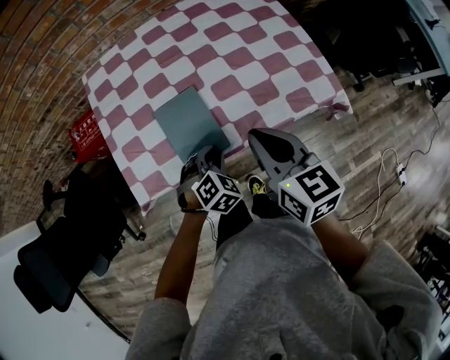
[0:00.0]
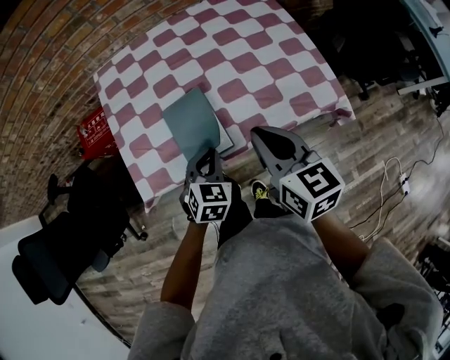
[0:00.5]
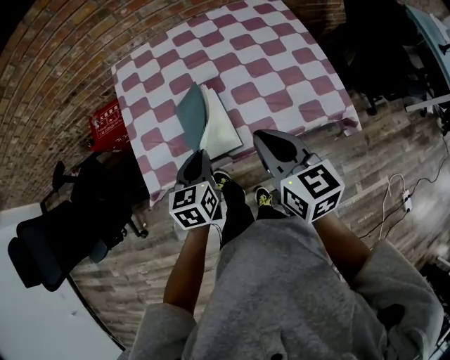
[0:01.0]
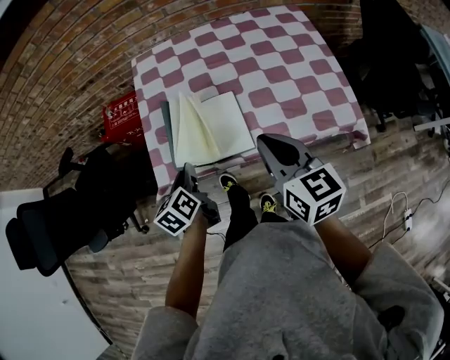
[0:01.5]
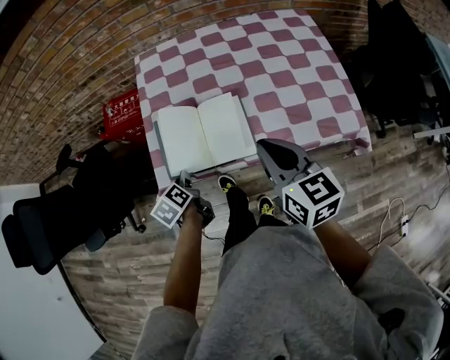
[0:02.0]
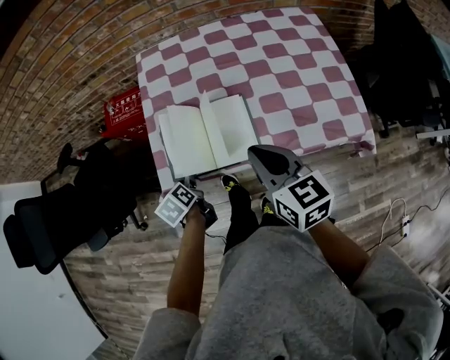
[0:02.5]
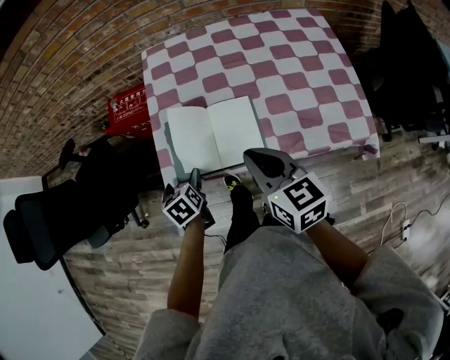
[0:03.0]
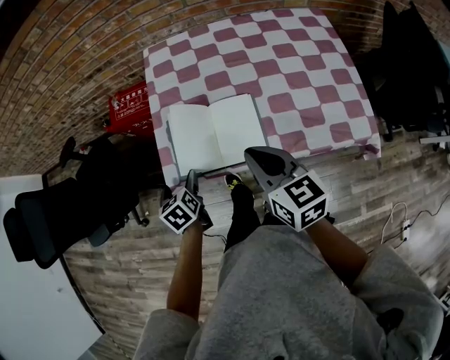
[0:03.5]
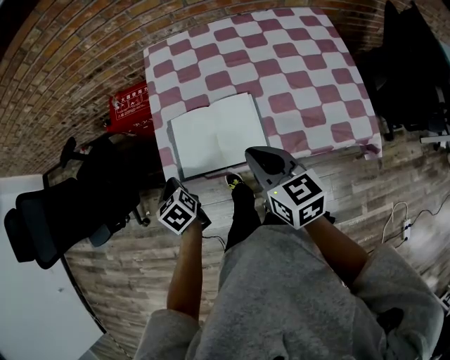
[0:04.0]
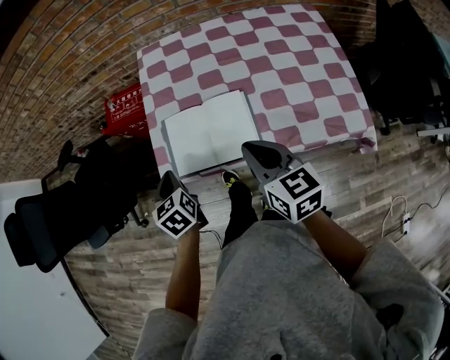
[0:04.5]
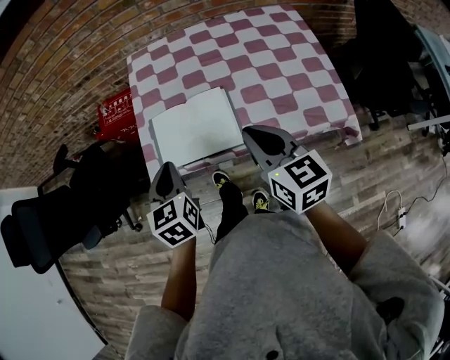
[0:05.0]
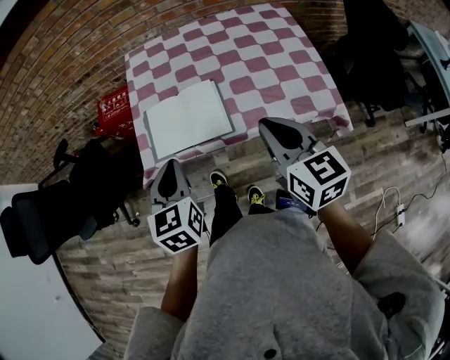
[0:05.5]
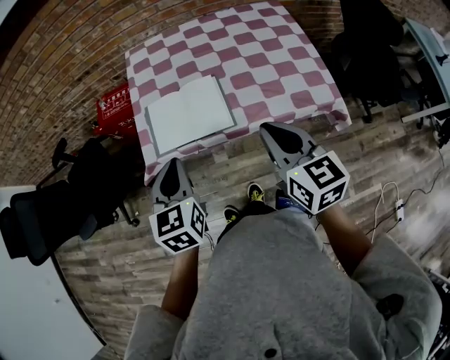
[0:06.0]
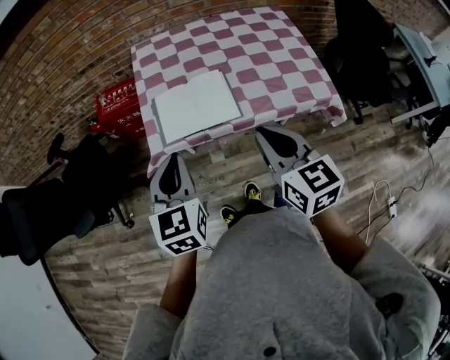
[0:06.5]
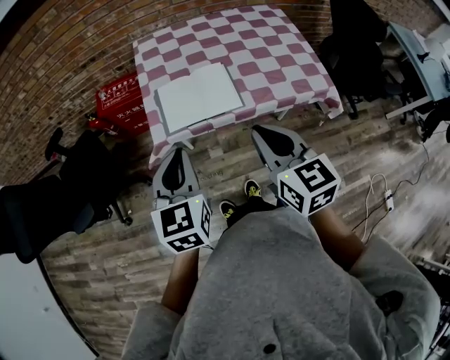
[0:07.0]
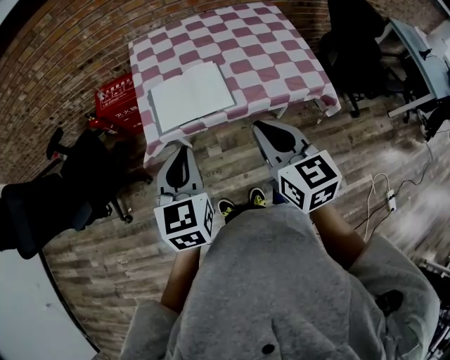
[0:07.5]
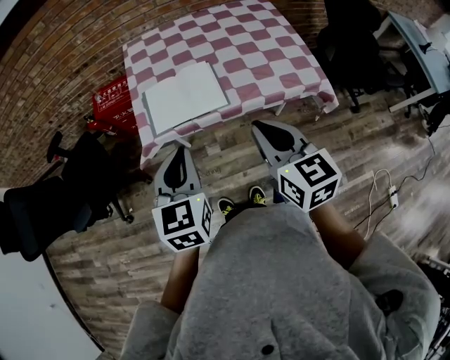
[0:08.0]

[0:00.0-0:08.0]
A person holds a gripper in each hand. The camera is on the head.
0:00.0 to 0:02.0: The left gripper is displaced to the left by some 25 cm, and twists some 100 degrees counterclockwise, seen from behind. Meanwhile the right gripper goes about 5 cm to the left.
0:02.0 to 0:04.0: Both grippers travel together to the left, some 5 cm. The left gripper changes its angle by some 20 degrees, and opens, then closes once more.
0:04.0 to 0:06.0: The left gripper shifts roughly 25 cm upward, to the right and backward, and changes its angle by some 40 degrees; the right gripper goes some 15 cm backward, upward and to the right.
0:06.0 to 0:08.0: The two grippers go some 10 cm backward.

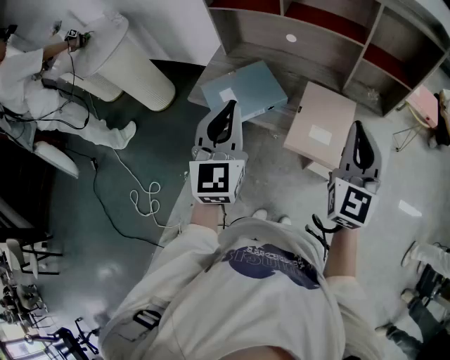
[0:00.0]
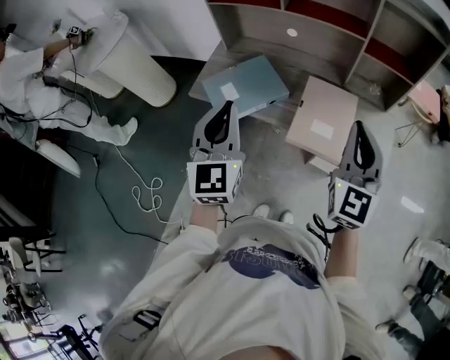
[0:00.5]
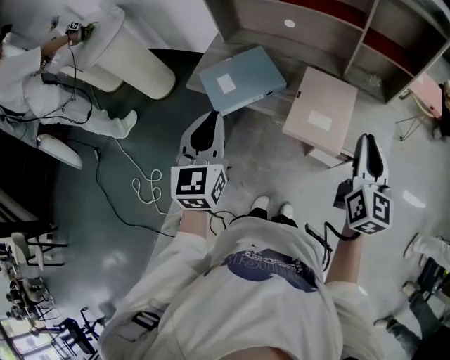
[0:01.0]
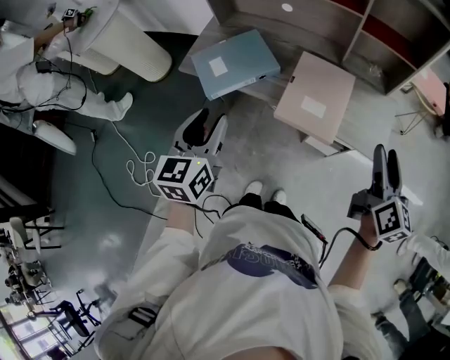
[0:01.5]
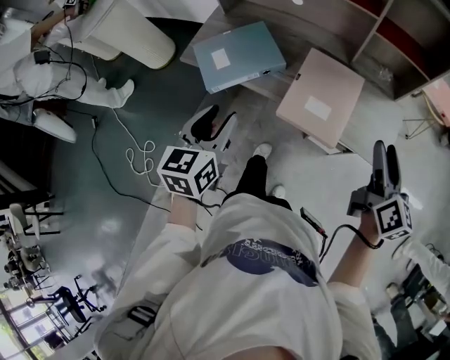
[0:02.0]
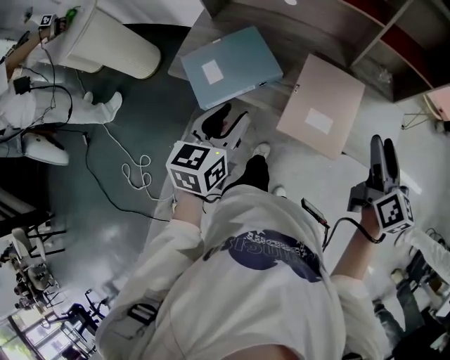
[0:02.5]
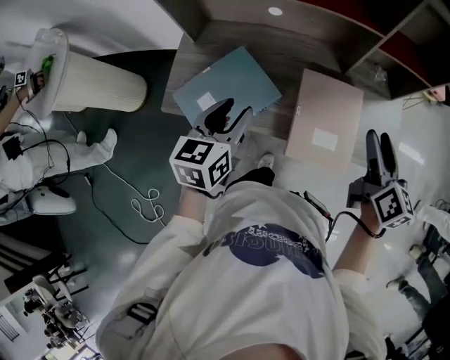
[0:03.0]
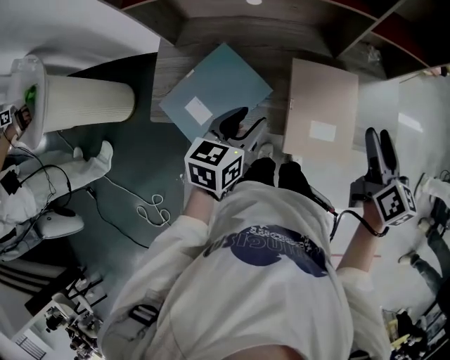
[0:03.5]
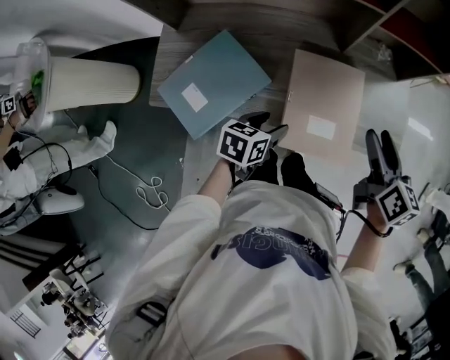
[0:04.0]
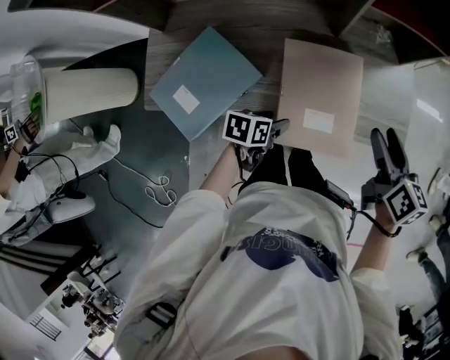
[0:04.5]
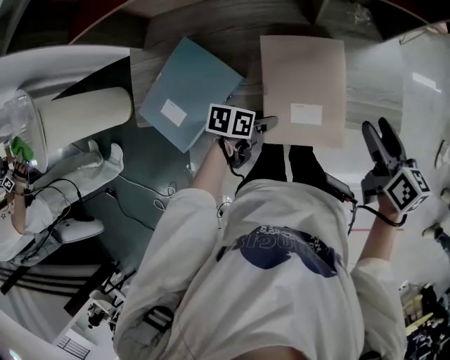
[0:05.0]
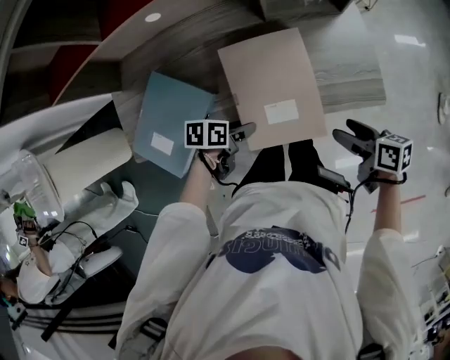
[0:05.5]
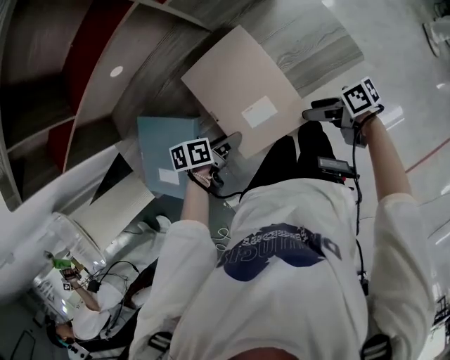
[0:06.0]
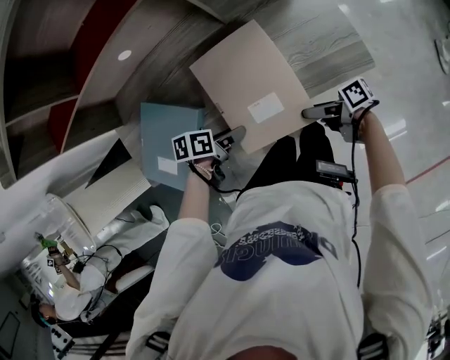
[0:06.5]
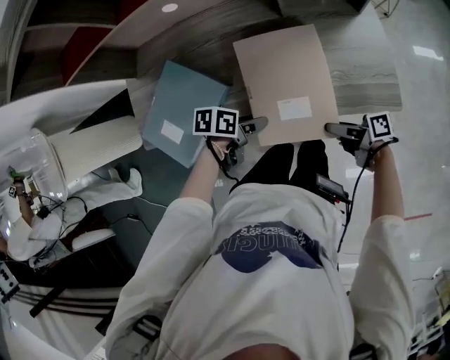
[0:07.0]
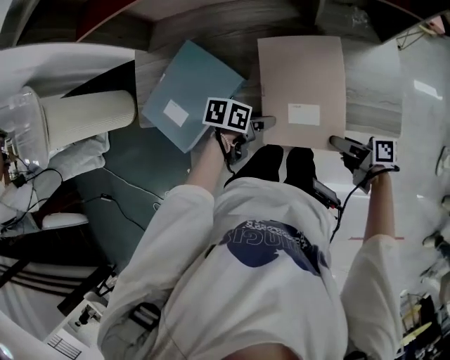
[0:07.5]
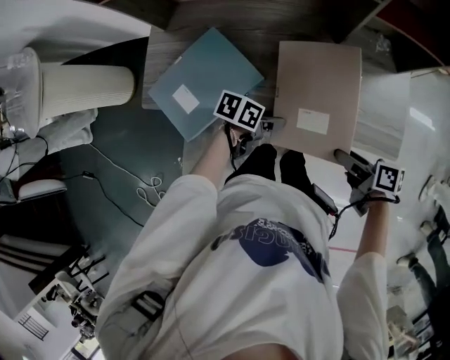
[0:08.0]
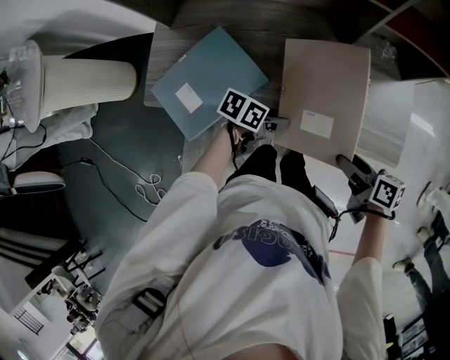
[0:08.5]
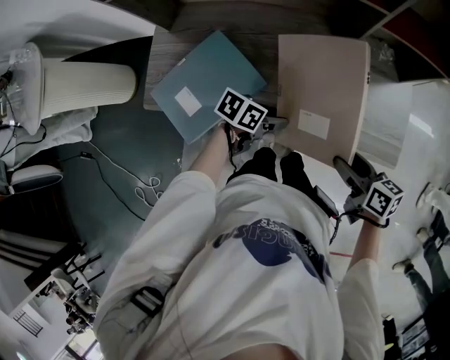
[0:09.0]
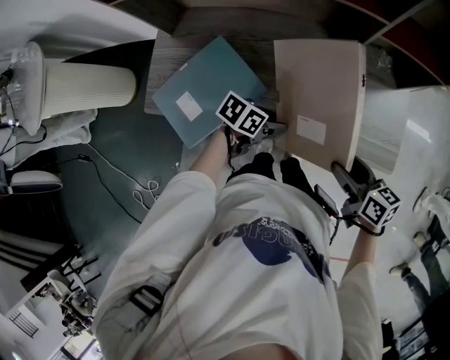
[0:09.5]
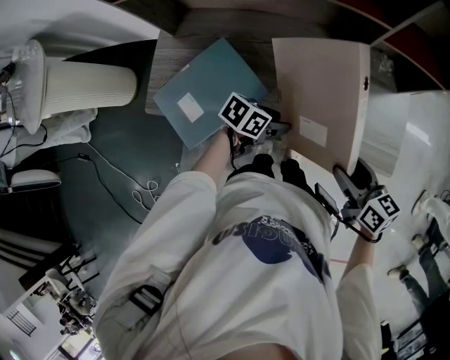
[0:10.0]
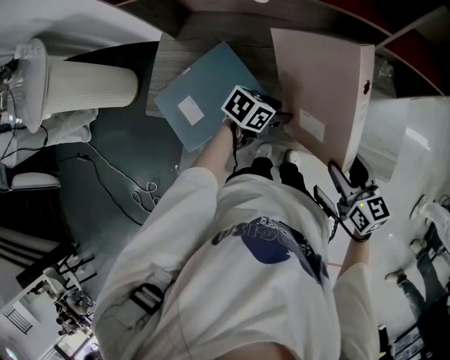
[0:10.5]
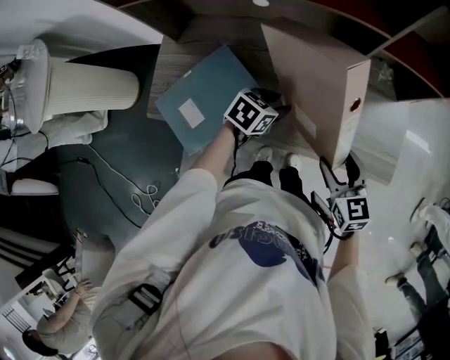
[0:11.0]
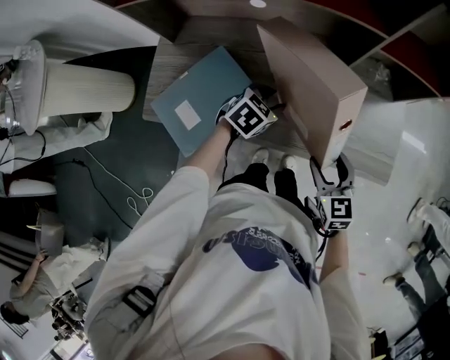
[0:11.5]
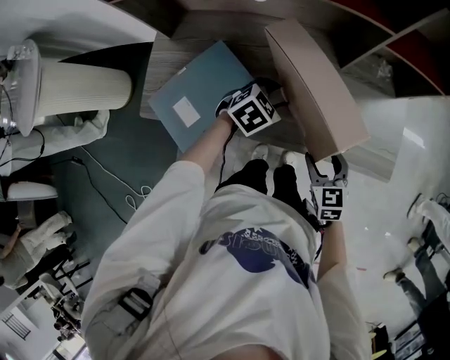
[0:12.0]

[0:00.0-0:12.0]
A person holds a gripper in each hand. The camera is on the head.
0:00.0 to 0:02.0: The right gripper shifts about 20 cm to the right and downward, rotates around the line of its fingers by about 40 degrees, clockwise from behind, and opens its fingers. The left gripper moves downward, roughly 10 cm, rotates some 30 degrees, and opens up.
0:02.0 to 0:04.0: The right gripper ends up approximately 15 cm from where it was. Meanwhile the left gripper is displaced downward by approximately 20 cm, and turns by about 50 degrees.
0:04.0 to 0:06.0: The right gripper shifts about 25 cm downward, and rotates about 50 degrees, while the left gripper shifts approximately 10 cm downward, and turns by roughly 30 degrees.
0:06.0 to 0:08.0: The right gripper heads upward, covering roughly 10 cm.
0:08.0 to 0:10.0: The right gripper goes roughly 5 cm upward, and turns by approximately 40 degrees.
0:10.0 to 0:12.0: The left gripper ends up about 10 cm from where it was, and changes its angle by approximately 40 degrees. Meanwhile the right gripper shifts about 10 cm downward, and turns by some 40 degrees.

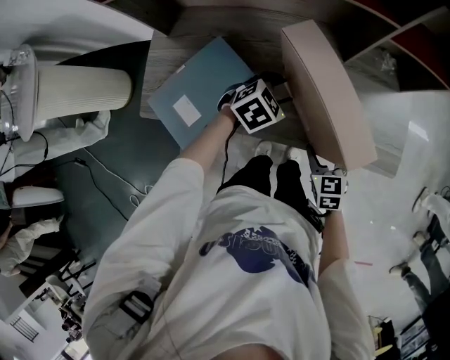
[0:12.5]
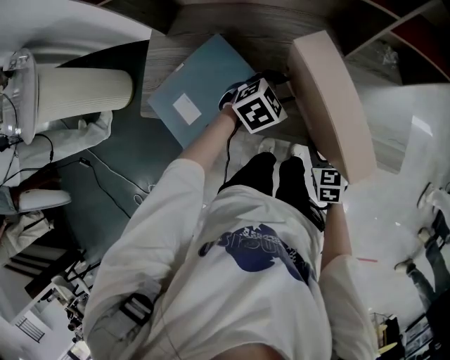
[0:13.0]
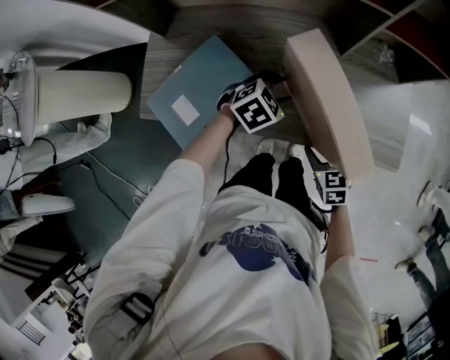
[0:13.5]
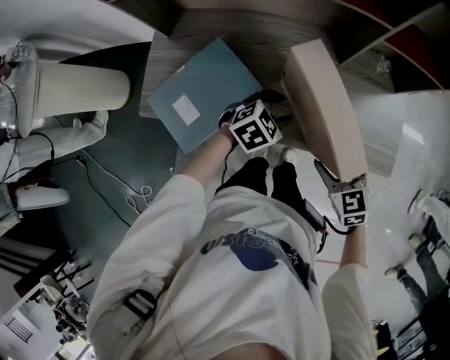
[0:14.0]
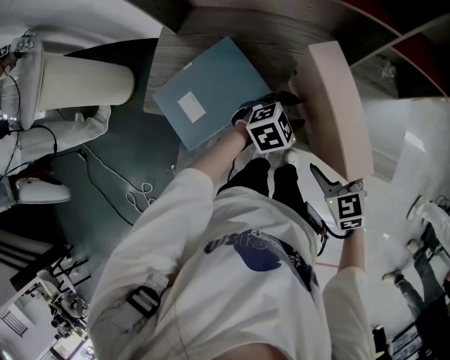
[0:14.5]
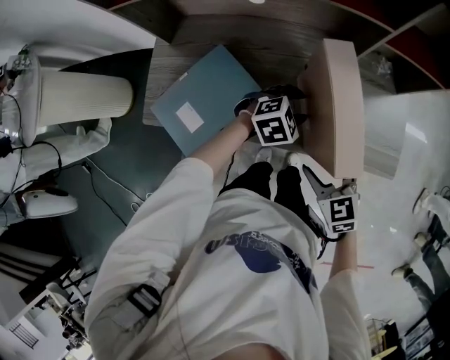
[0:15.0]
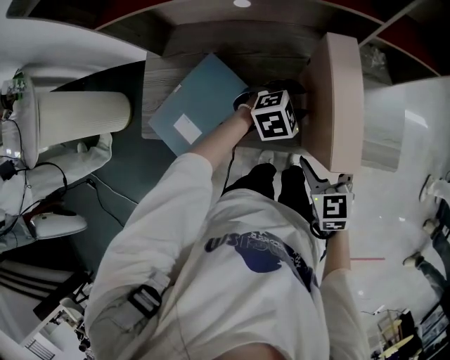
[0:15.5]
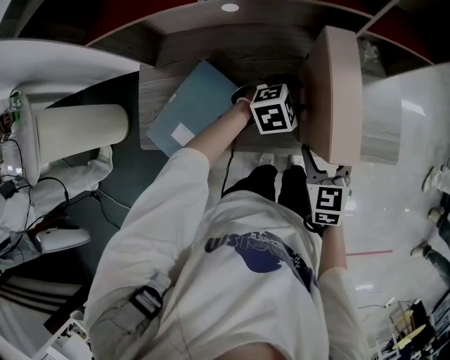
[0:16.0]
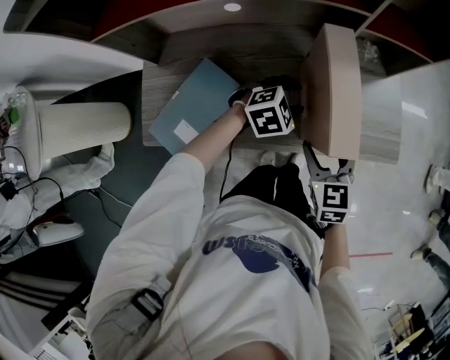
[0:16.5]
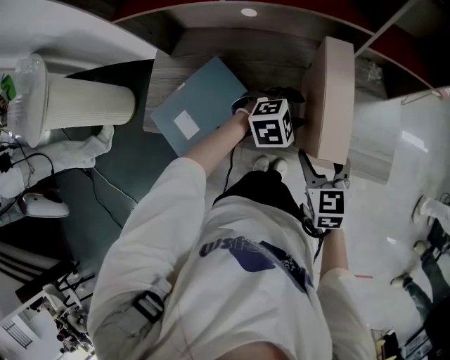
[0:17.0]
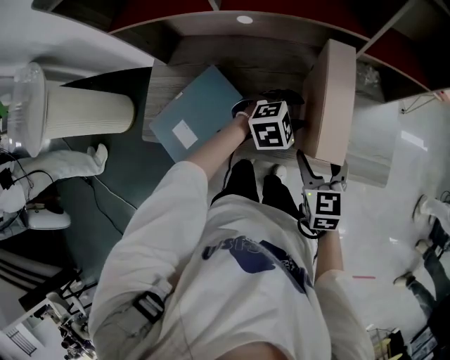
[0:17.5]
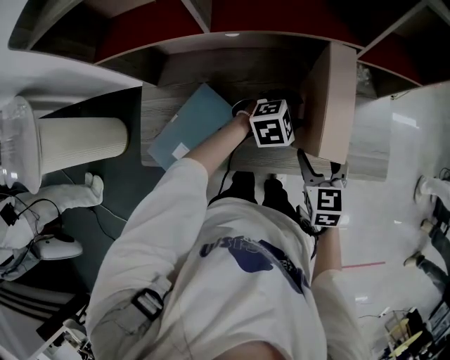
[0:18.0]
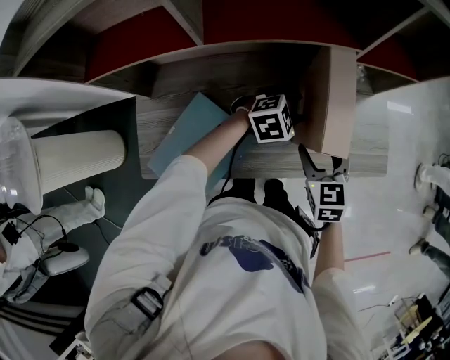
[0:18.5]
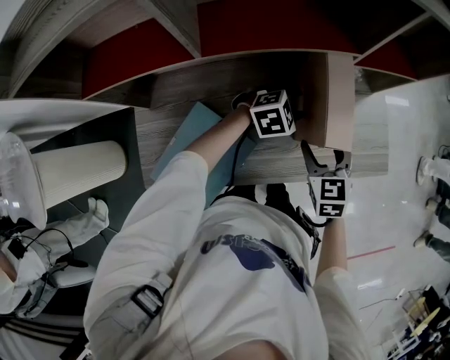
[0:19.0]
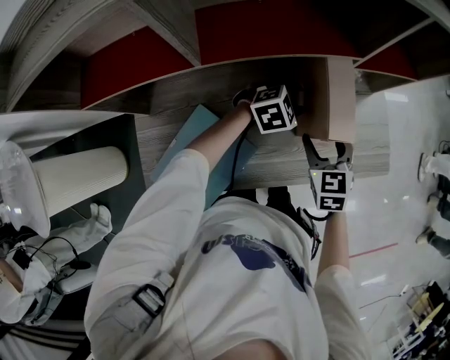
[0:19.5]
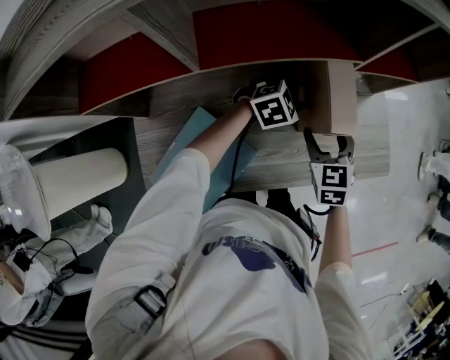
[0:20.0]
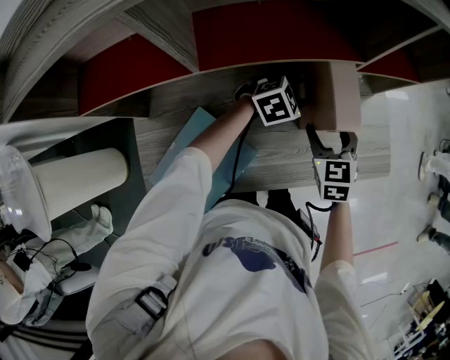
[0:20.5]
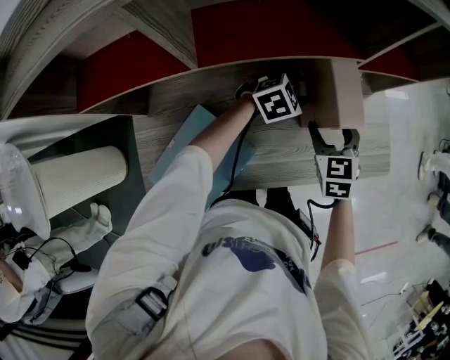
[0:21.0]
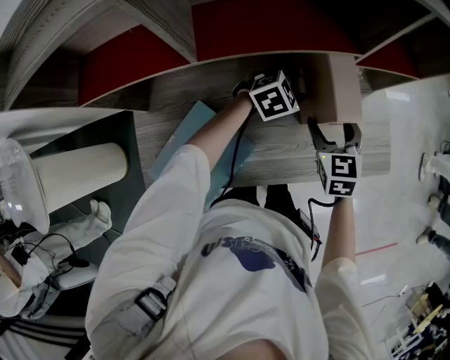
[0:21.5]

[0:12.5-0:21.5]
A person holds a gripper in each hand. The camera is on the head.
0:12.5 to 0:14.5: The right gripper shifts approximately 10 cm upward, while the left gripper changes place by approximately 5 cm.
0:14.5 to 0:17.0: The left gripper ends up some 5 cm from where it was; the right gripper shifts by roughly 5 cm.
0:17.0 to 0:19.5: Both grippers move forward and to the left, roughly 15 cm.
0:19.5 to 0:21.5: There are only small adjustments of the grippers.
